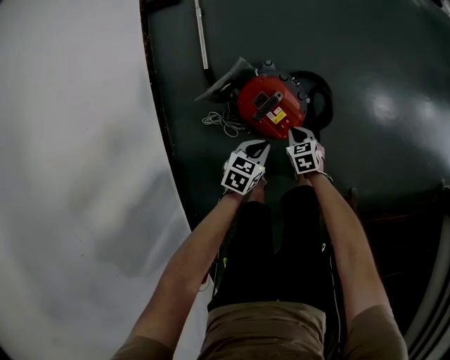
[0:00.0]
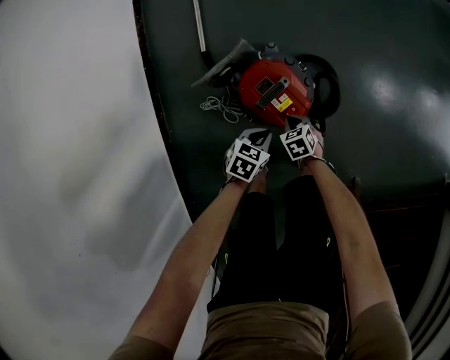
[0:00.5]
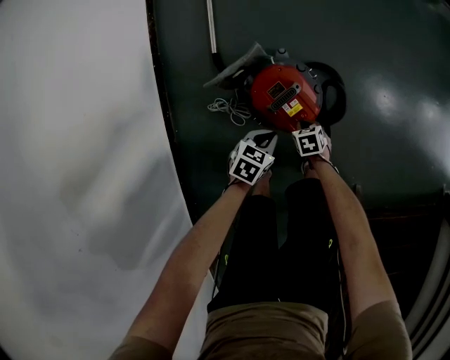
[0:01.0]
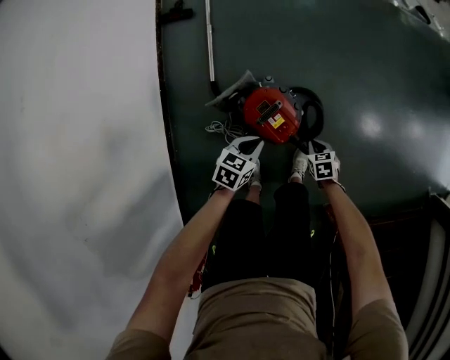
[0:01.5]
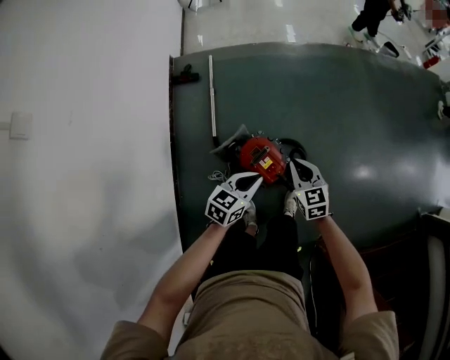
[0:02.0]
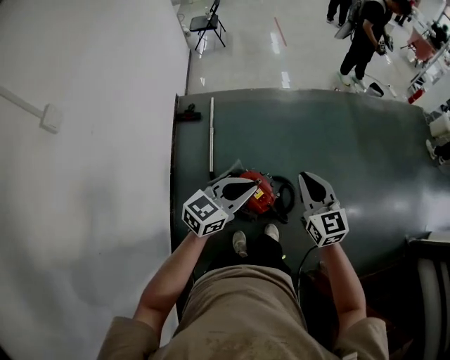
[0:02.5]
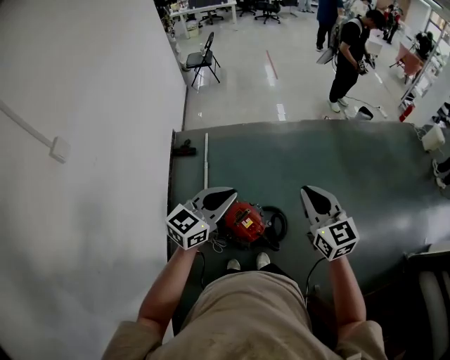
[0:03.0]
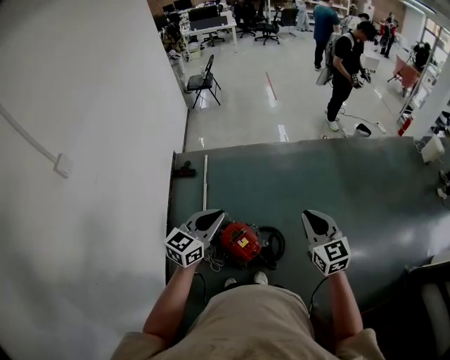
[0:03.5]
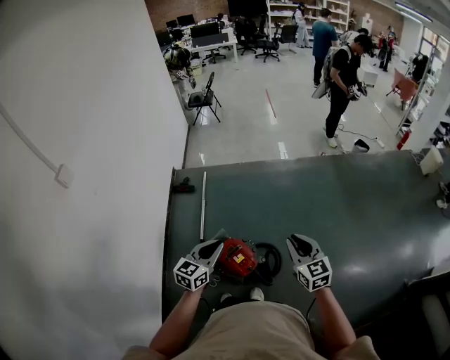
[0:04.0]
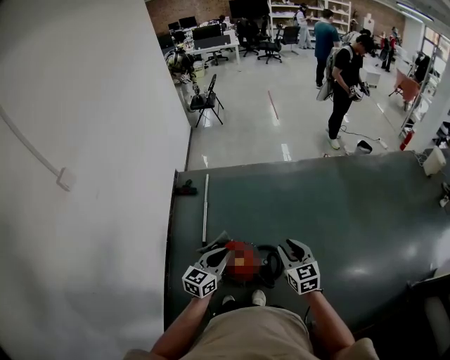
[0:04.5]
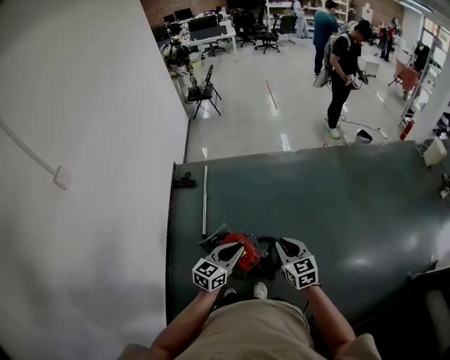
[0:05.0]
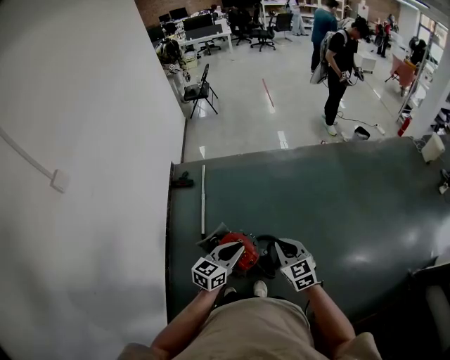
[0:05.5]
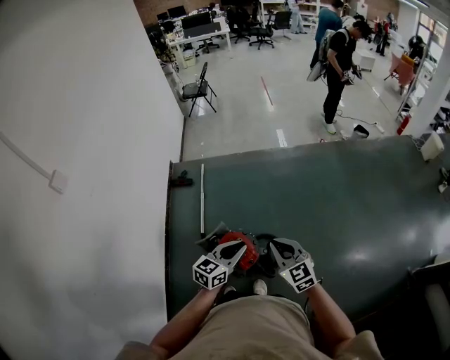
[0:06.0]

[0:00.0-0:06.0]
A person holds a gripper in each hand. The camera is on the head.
0:00.0 to 0:02.0: The two grippers go approximately 40 cm upward. The left gripper turns by about 30 degrees, while the right gripper angles its fingers upward, by roughly 30 degrees.
0:02.0 to 0:04.0: The left gripper moves upward, approximately 20 cm, and turns by about 20 degrees; the right gripper moves upward and to the right, about 30 cm.
0:04.0 to 0:06.0: The left gripper goes some 10 cm to the right. The right gripper goes some 5 cm to the left.

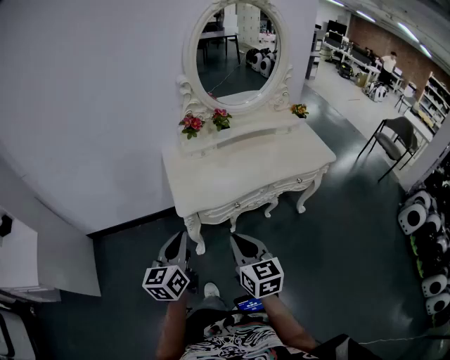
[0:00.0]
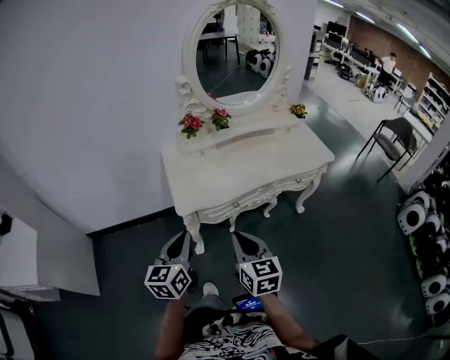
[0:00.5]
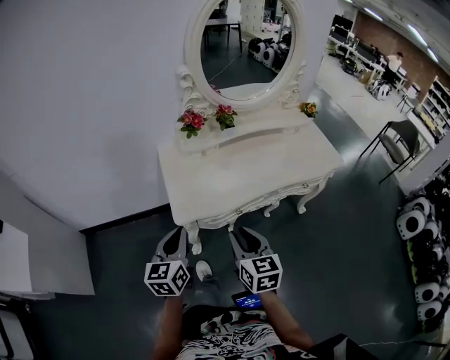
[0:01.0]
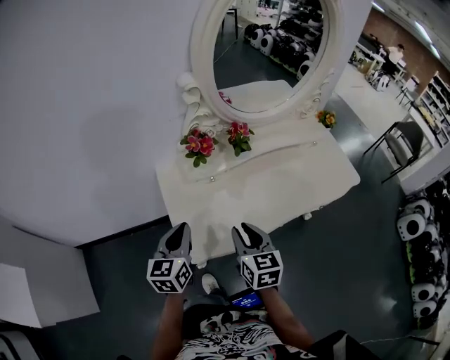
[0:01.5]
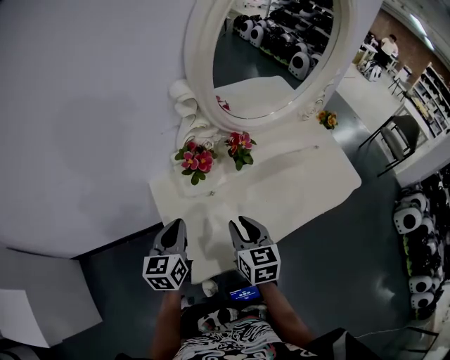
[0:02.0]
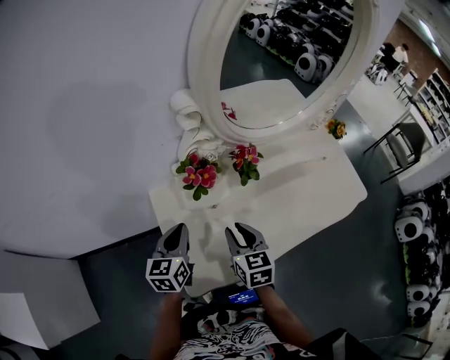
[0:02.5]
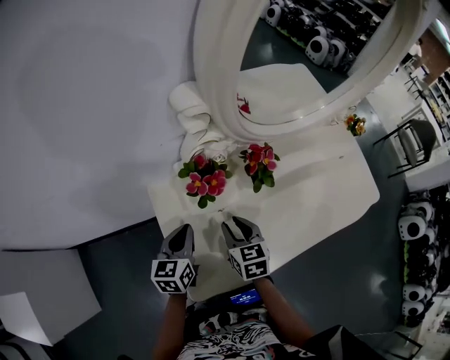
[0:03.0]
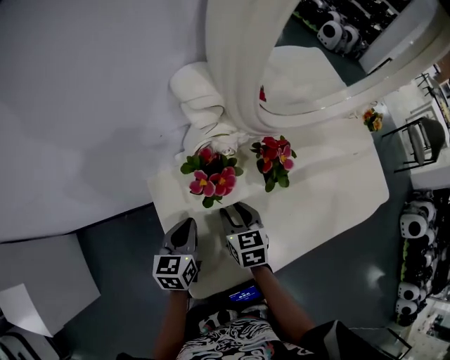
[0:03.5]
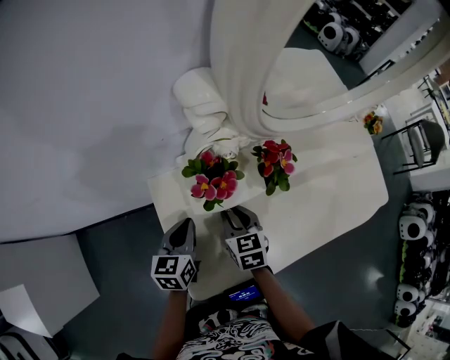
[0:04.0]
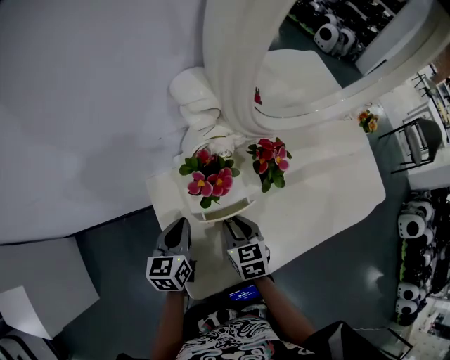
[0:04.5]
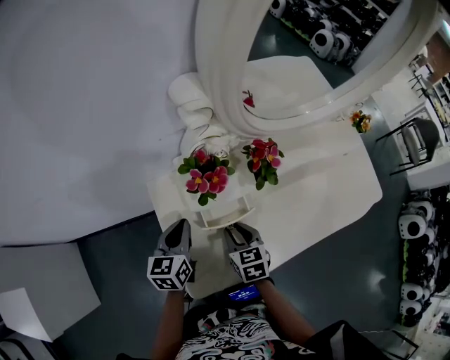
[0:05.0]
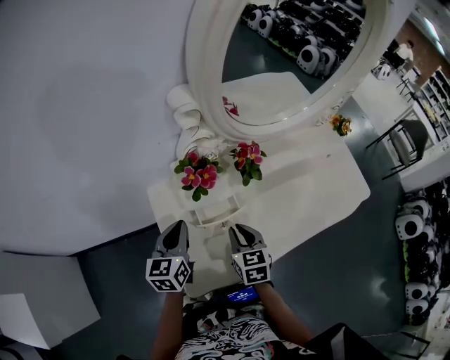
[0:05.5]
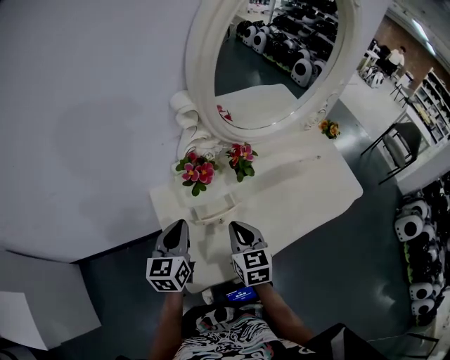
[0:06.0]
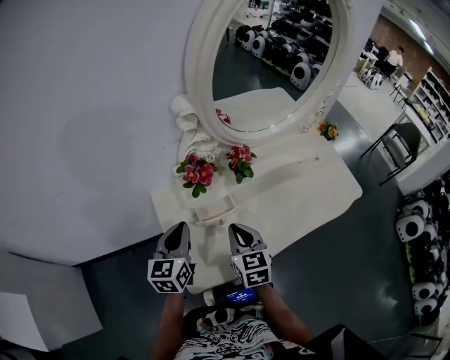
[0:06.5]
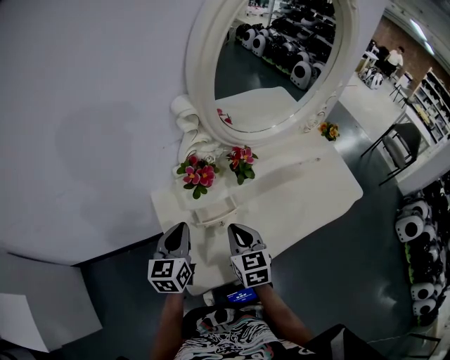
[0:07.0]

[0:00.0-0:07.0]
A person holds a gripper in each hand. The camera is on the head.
0:00.0 to 0:02.0: Both grippers move forward, approximately 40 cm. The right gripper opens its fingers.
0:02.0 to 0:03.5: The two grippers go approximately 15 cm downward and forward.
0:03.5 to 0:05.0: The right gripper goes approximately 5 cm backward.
0:05.0 to 0:07.0: Both grippers travel together upward, roughly 10 cm. The right gripper closes its fingers.

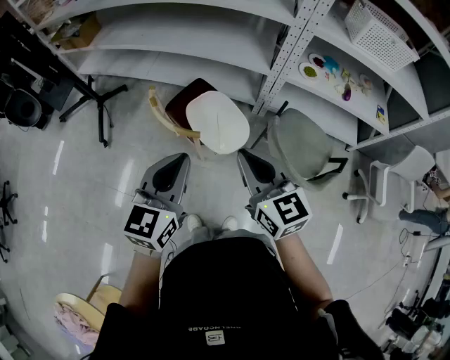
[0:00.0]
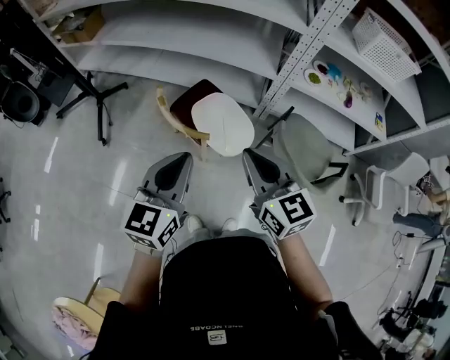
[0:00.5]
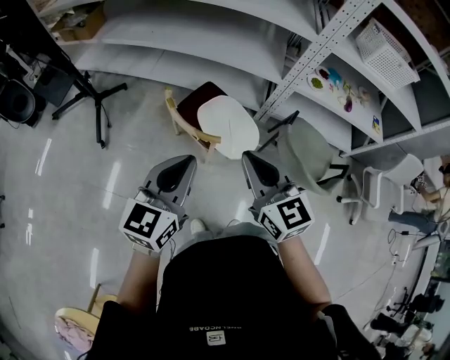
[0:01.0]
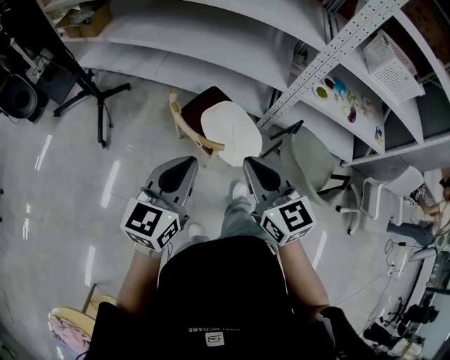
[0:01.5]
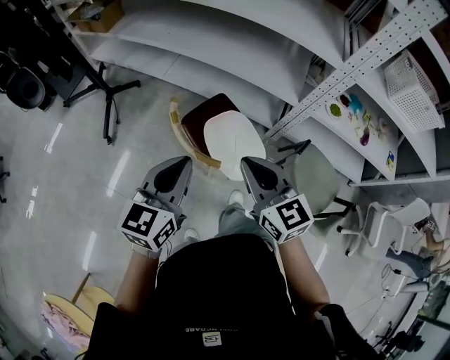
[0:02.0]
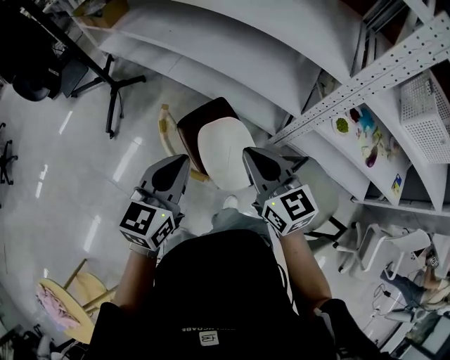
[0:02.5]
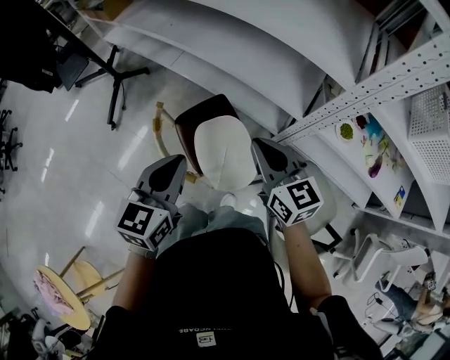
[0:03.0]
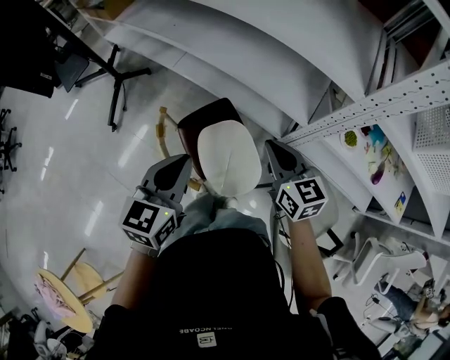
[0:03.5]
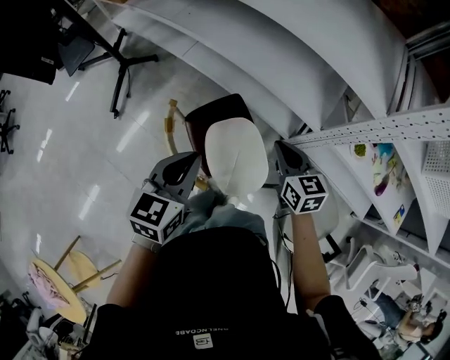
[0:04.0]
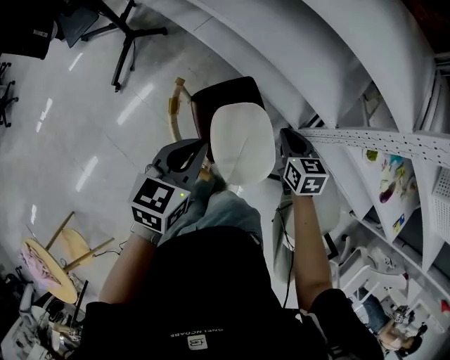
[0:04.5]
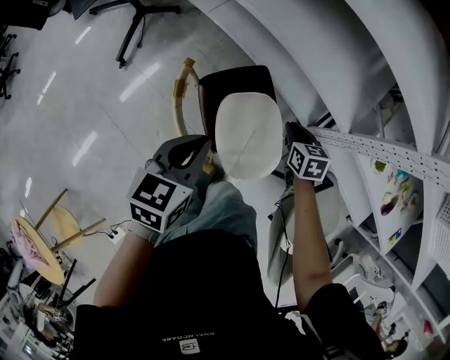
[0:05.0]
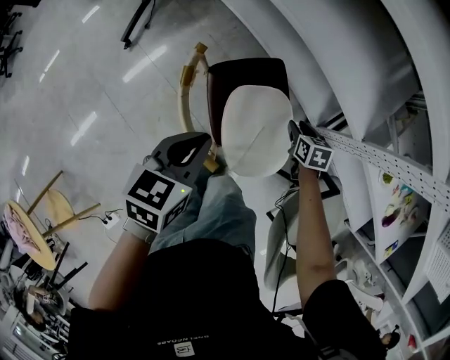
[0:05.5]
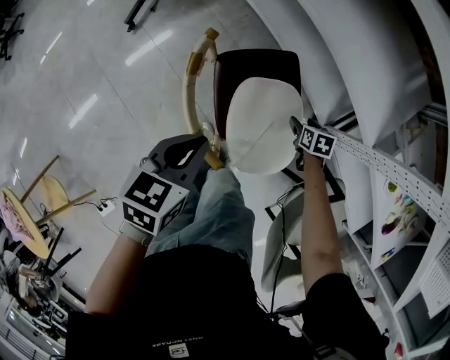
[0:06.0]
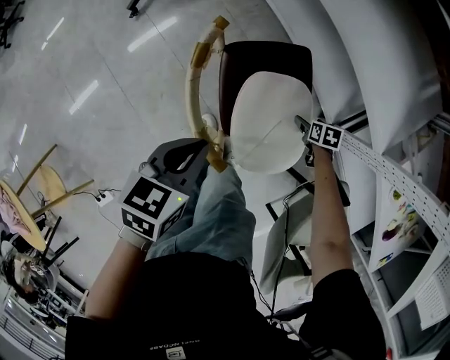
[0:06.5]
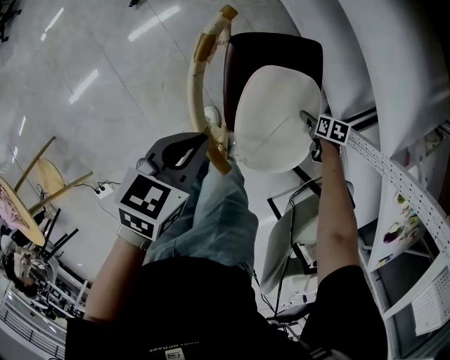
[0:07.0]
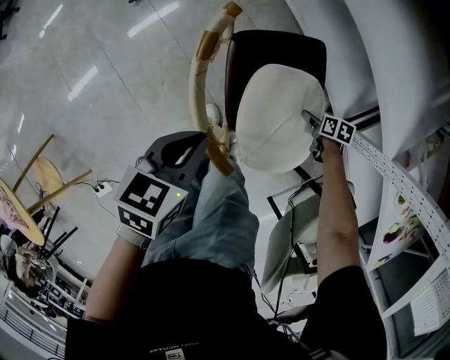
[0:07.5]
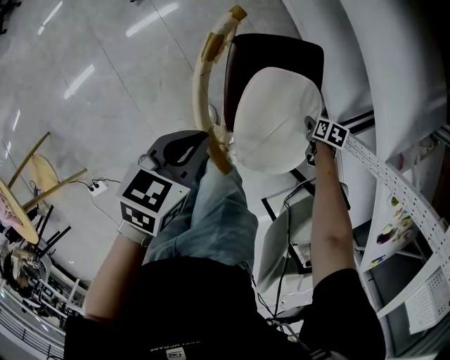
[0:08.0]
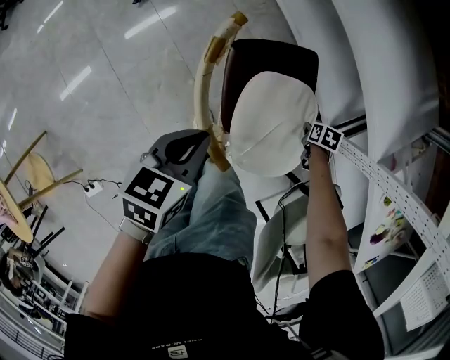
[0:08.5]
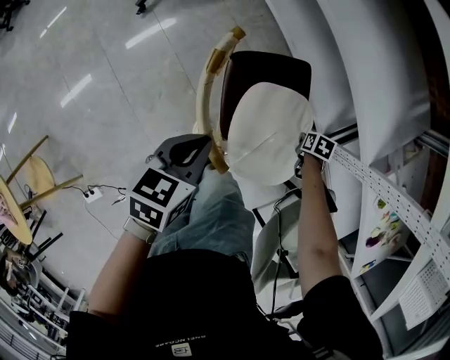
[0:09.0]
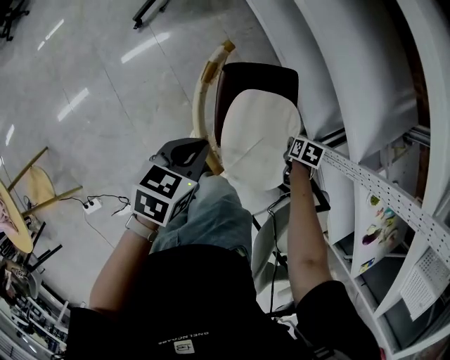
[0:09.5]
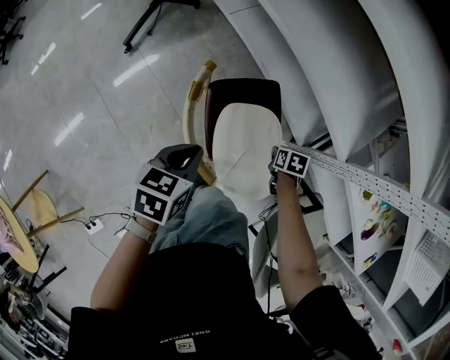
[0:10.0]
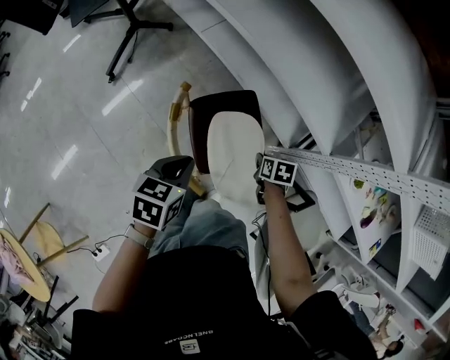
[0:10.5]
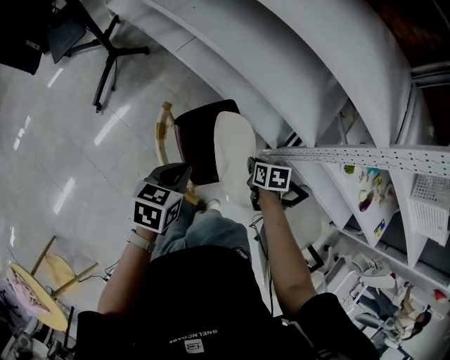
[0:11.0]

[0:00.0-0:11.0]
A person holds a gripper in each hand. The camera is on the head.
0:00.0 to 0:02.0: The grippers both shift forward and to the left by some 15 cm.
0:02.0 to 0:03.5: The right gripper shifts about 25 cm forward and to the right, while the left gripper moves forward and to the right, approximately 15 cm.
0:03.5 to 0:05.5: The right gripper goes some 35 cm downward, and angles its fingers downward, by about 40 degrees. The left gripper moves downward, approximately 20 cm, and rotates roughly 20 degrees.
0:05.5 to 0:07.5: The right gripper travels downward by approximately 20 cm, swivels about 20 degrees, and opens up; the left gripper heads downward, covering approximately 10 cm.
0:07.5 to 0:09.0: The right gripper heads upward, covering approximately 10 cm, and closes up.
0:09.0 to 0:11.0: The left gripper goes roughly 10 cm upward, while the right gripper goes approximately 20 cm upward, and turns by some 20 degrees.

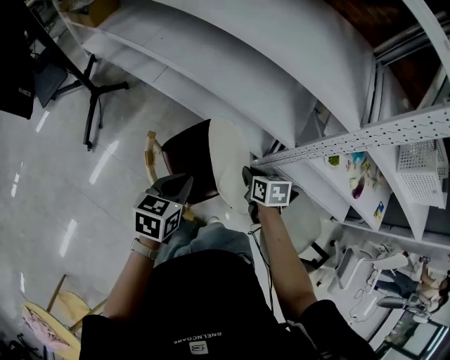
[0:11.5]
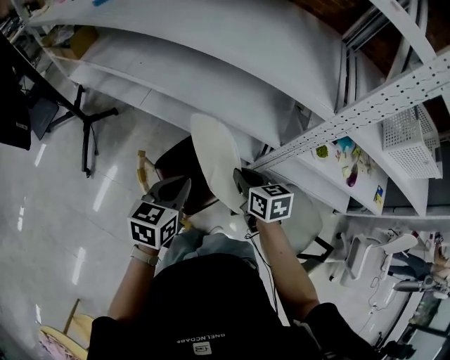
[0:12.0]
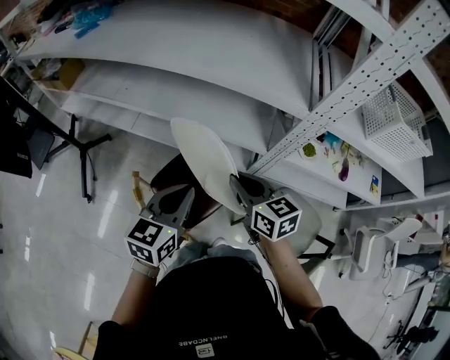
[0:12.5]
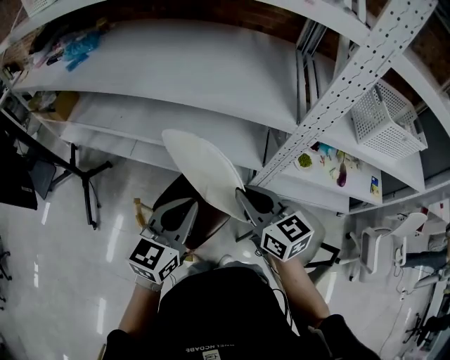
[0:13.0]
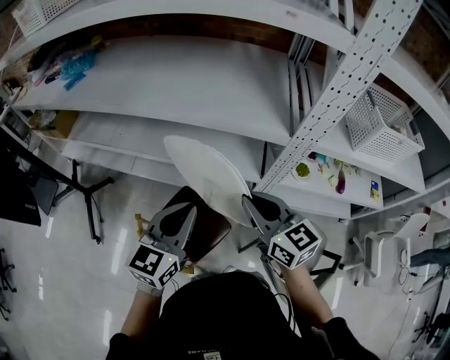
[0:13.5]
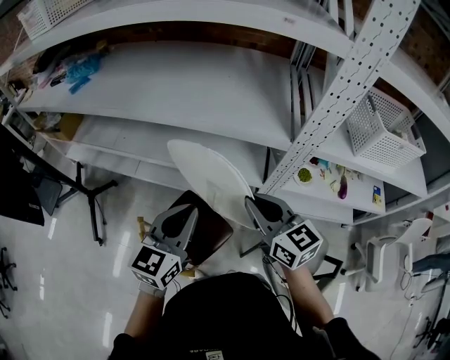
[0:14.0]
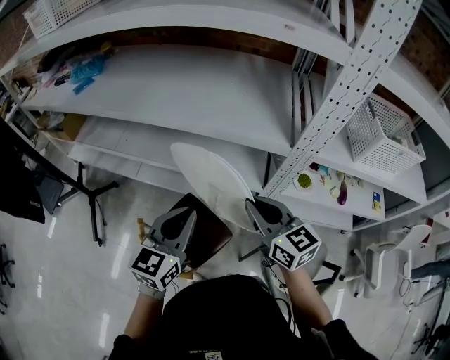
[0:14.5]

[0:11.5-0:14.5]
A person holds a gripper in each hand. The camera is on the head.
0:11.5 to 0:13.0: The right gripper moves upward, roughly 30 cm, and points its fingers some 40 degrees further upward; the left gripper moves upward and to the right, roughly 20 cm, and swivels some 30 degrees.
0:13.0 to 0:14.5: The right gripper moves about 5 cm.
